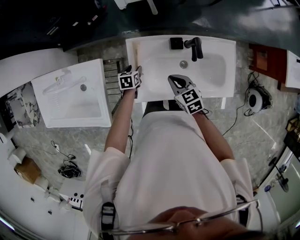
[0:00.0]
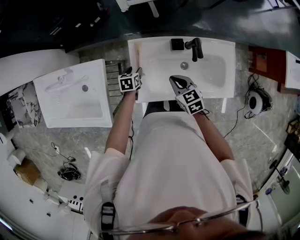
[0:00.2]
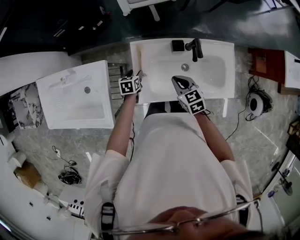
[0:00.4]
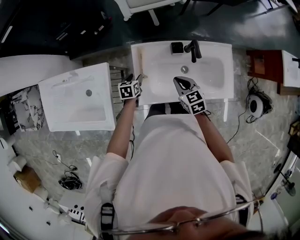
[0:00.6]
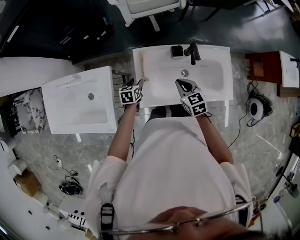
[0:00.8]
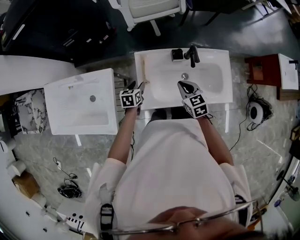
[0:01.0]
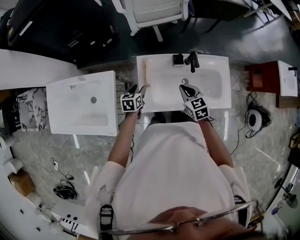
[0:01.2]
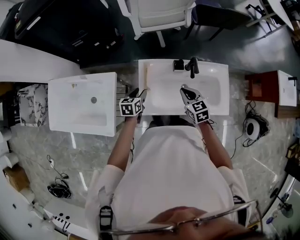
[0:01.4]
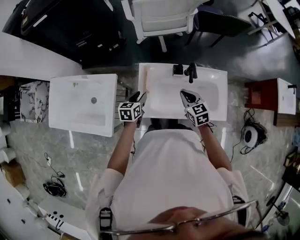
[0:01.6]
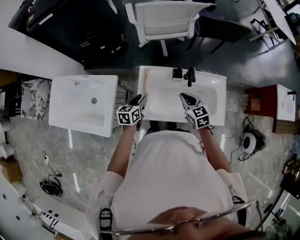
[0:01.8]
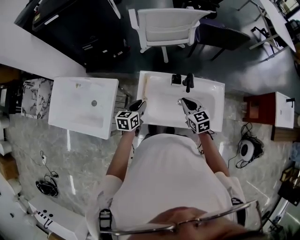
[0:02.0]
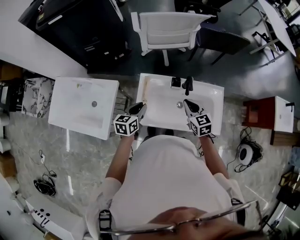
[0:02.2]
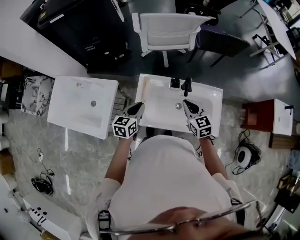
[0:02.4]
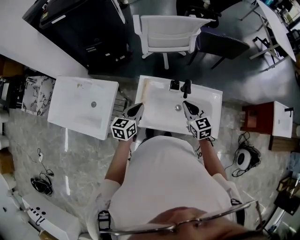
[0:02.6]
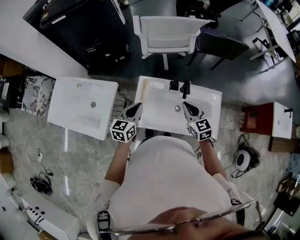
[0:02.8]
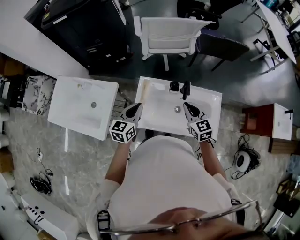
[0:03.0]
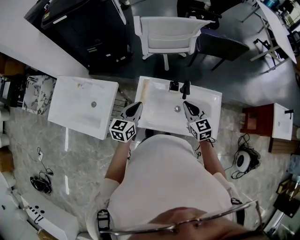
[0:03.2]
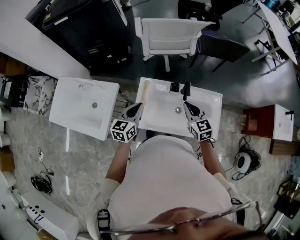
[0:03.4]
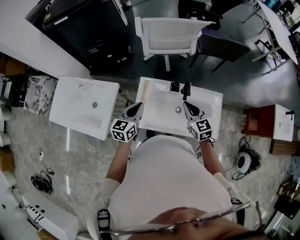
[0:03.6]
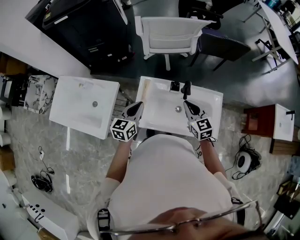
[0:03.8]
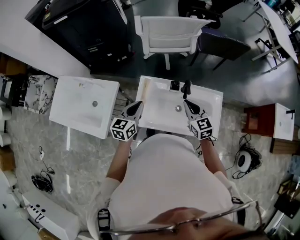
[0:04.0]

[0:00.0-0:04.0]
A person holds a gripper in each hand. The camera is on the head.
0:00.0 to 0:01.4: The left gripper goes some 15 cm upward. The right gripper goes about 5 cm upward.
0:01.4 to 0:02.6: The left gripper heads upward, covering about 15 cm, and closes. The right gripper travels upward by approximately 10 cm.
0:02.6 to 0:04.0: The grippers make only small movements.

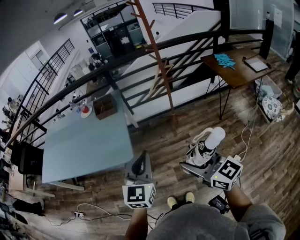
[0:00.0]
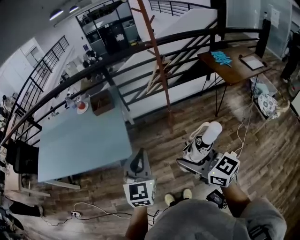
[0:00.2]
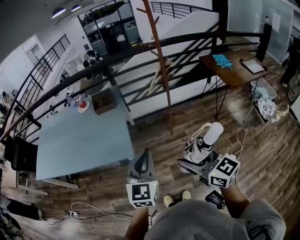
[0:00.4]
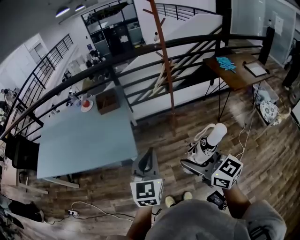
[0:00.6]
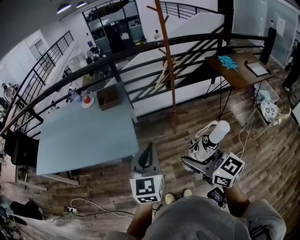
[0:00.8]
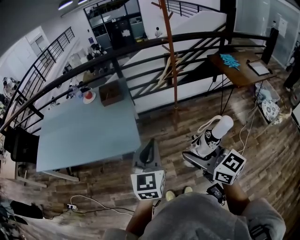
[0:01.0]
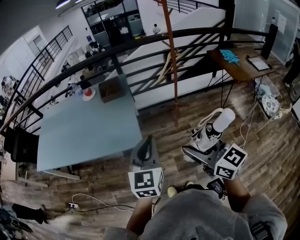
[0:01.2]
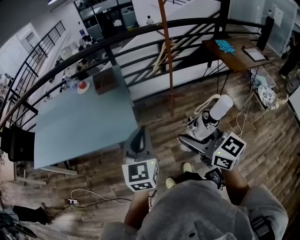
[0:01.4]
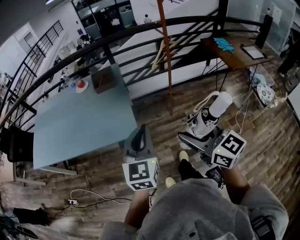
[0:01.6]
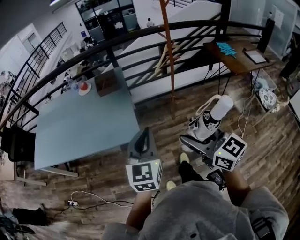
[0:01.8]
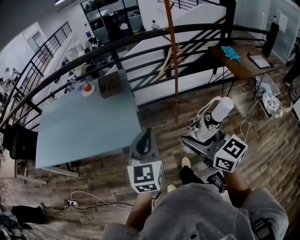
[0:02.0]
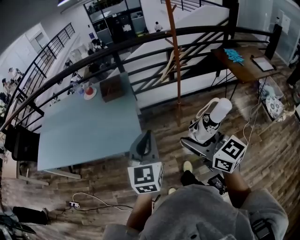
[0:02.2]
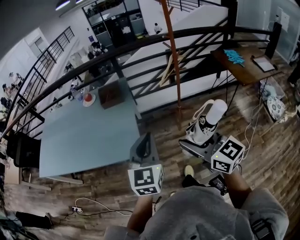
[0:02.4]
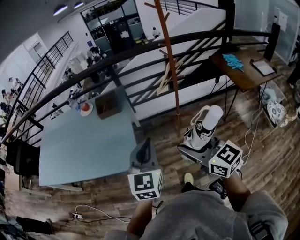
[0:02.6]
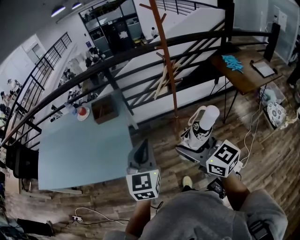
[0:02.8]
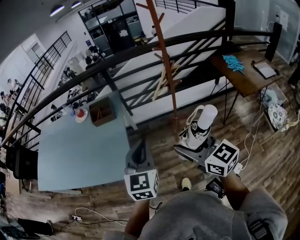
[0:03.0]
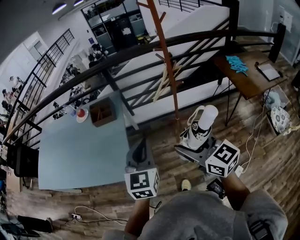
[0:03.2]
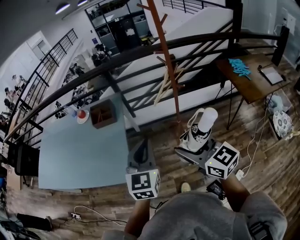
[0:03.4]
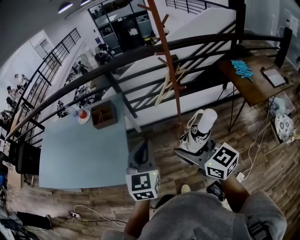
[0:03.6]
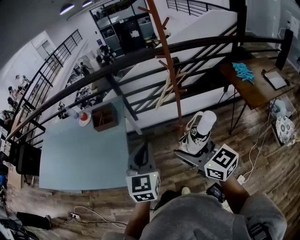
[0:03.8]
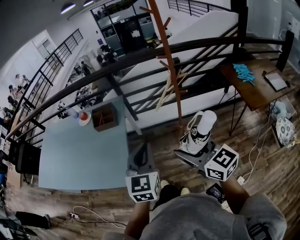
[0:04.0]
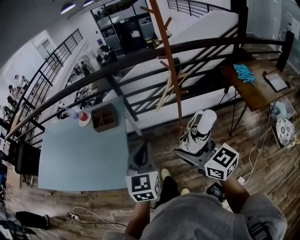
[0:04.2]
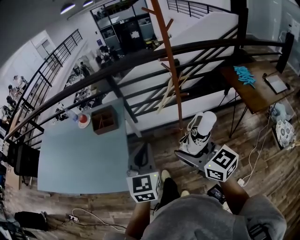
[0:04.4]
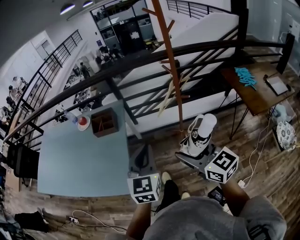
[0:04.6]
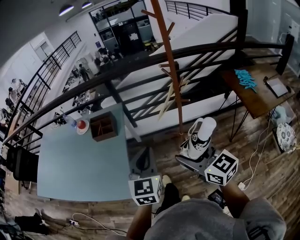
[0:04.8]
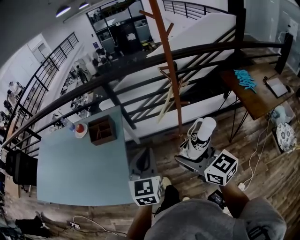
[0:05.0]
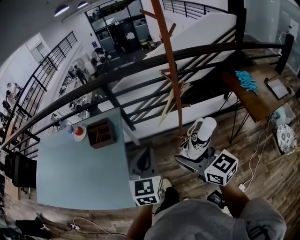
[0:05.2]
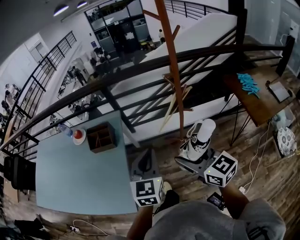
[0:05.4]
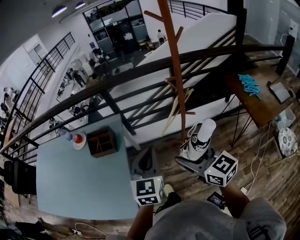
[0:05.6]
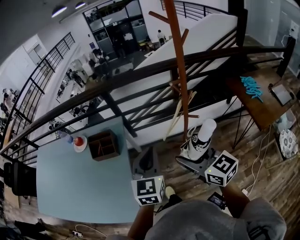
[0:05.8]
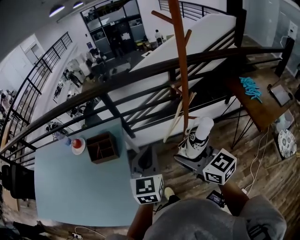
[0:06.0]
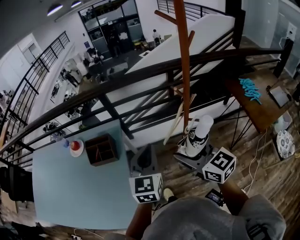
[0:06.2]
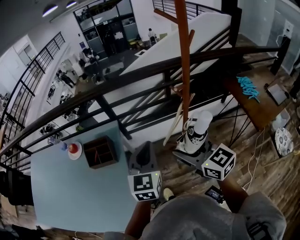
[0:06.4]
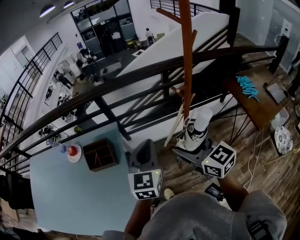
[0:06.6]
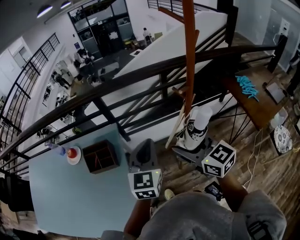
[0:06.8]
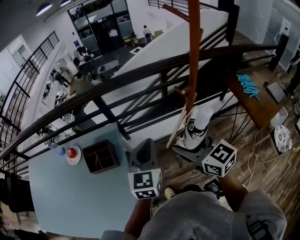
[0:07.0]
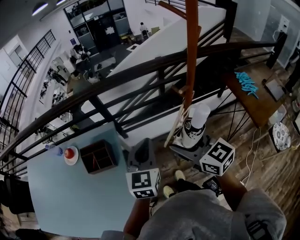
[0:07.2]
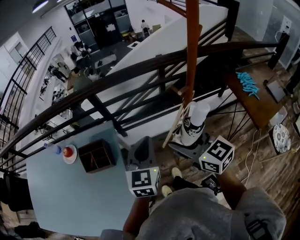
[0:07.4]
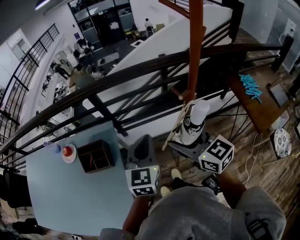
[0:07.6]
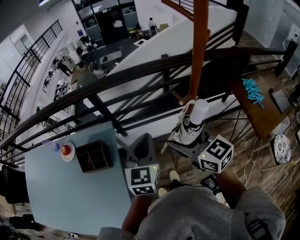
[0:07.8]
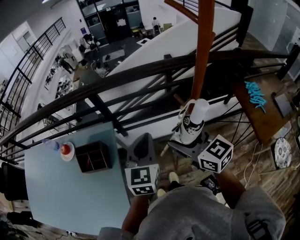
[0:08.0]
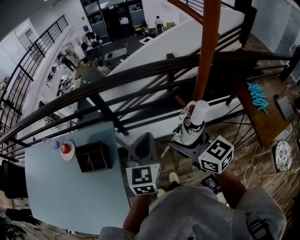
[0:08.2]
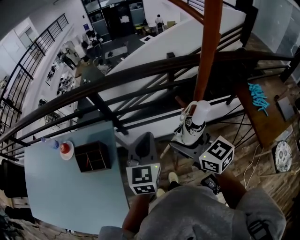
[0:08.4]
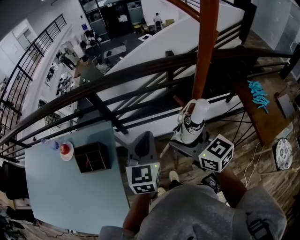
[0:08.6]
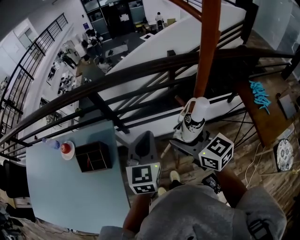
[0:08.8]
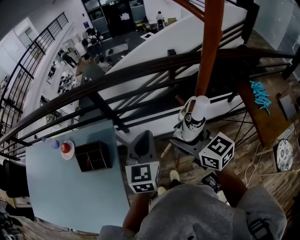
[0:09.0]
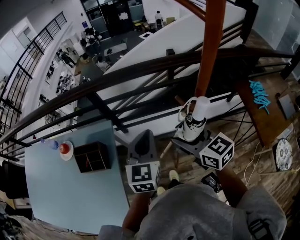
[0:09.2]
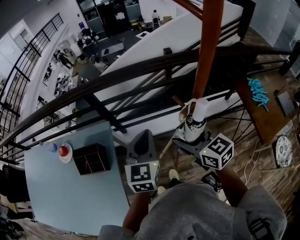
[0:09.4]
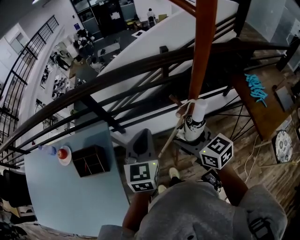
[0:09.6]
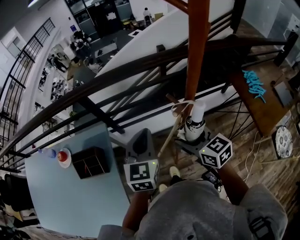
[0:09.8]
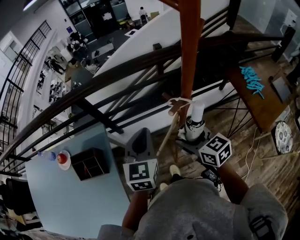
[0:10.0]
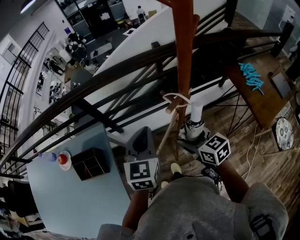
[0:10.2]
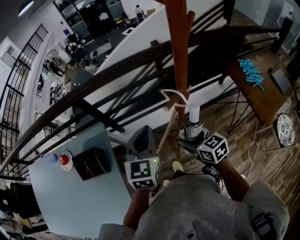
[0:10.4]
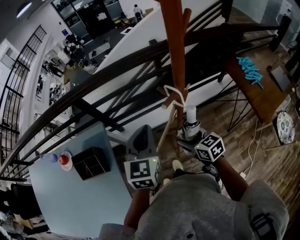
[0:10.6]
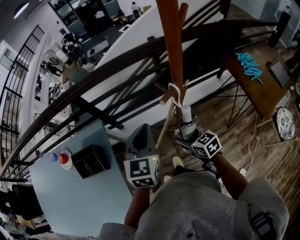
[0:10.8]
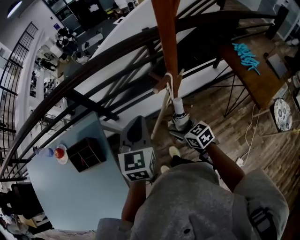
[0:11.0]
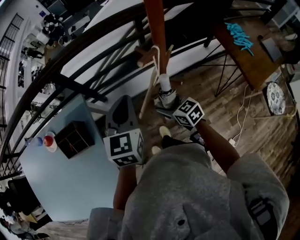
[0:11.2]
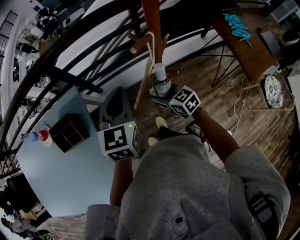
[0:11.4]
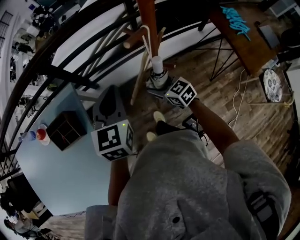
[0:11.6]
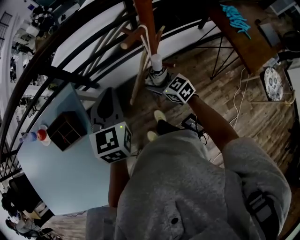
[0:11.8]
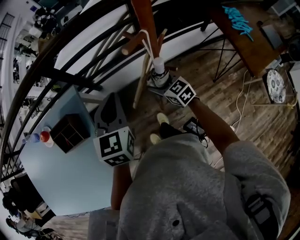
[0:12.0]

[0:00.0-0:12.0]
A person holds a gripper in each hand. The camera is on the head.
0:00.0 to 0:01.6: The two grippers go approximately 10 cm to the left.
0:01.6 to 0:03.0: Both grippers travel together forward and to the right, approximately 25 cm.
0:03.0 to 0:04.4: The two grippers go some 10 cm forward and to the right.
0:04.4 to 0:06.0: Both grippers travel together forward, about 25 cm.
0:06.0 to 0:07.6: Both grippers travel together forward, some 15 cm.
0:07.6 to 0:09.0: Both grippers move forward, some 5 cm.
0:09.0 to 0:10.4: The left gripper changes place by roughly 5 cm. The right gripper heads downward and to the right, covering approximately 15 cm, and turns by roughly 20 degrees.
0:10.4 to 0:12.0: The right gripper goes some 15 cm downward, while the left gripper is displaced downward by roughly 5 cm.

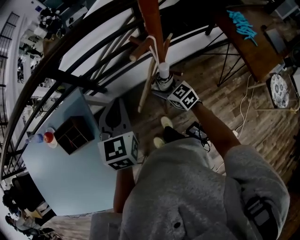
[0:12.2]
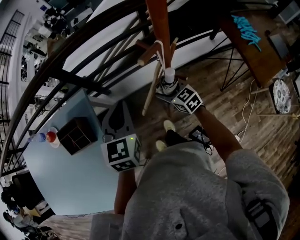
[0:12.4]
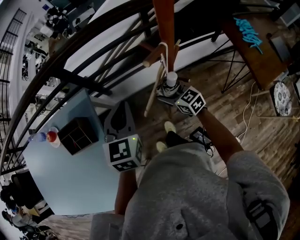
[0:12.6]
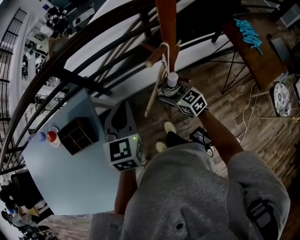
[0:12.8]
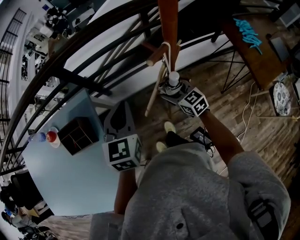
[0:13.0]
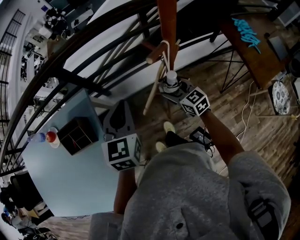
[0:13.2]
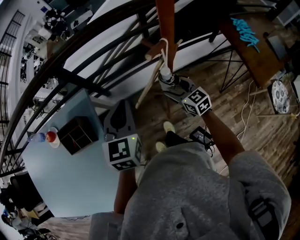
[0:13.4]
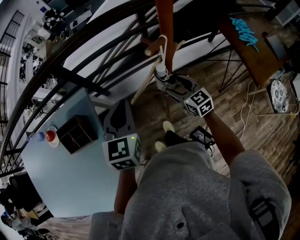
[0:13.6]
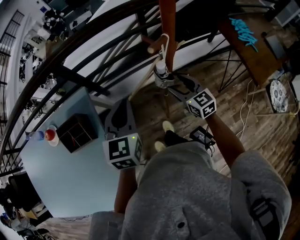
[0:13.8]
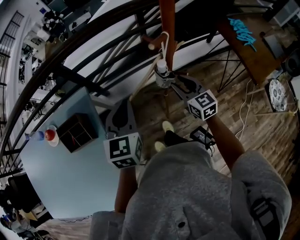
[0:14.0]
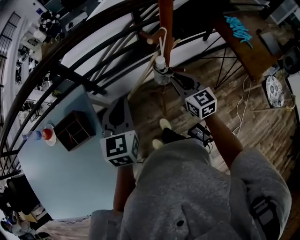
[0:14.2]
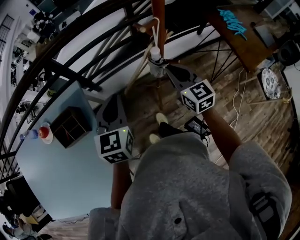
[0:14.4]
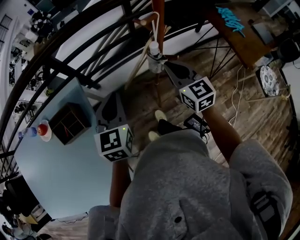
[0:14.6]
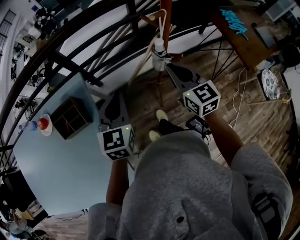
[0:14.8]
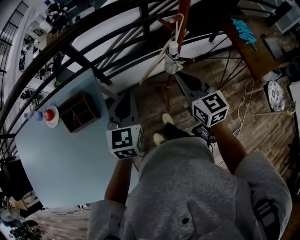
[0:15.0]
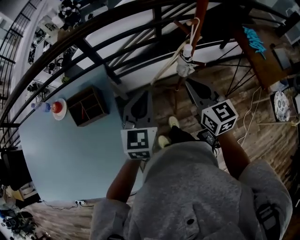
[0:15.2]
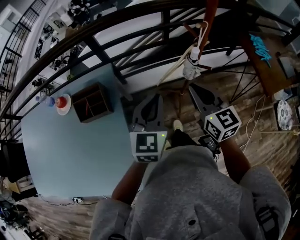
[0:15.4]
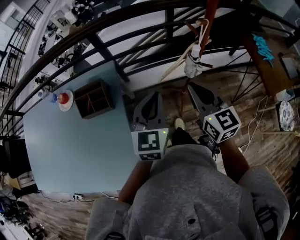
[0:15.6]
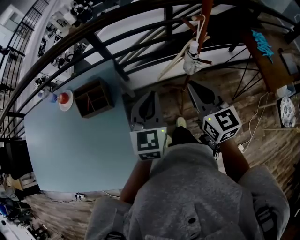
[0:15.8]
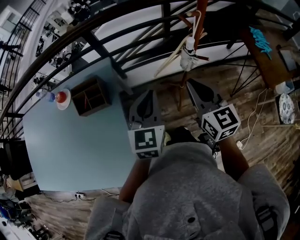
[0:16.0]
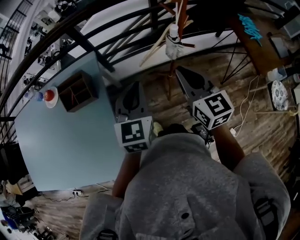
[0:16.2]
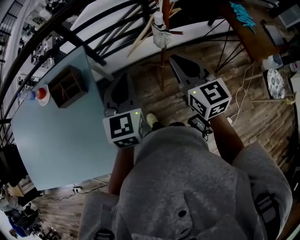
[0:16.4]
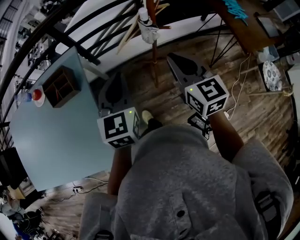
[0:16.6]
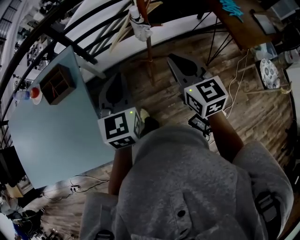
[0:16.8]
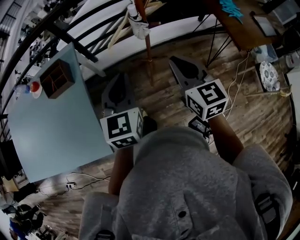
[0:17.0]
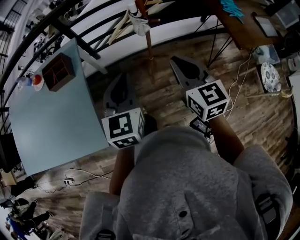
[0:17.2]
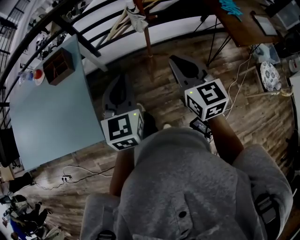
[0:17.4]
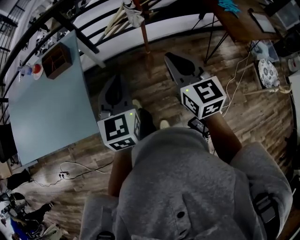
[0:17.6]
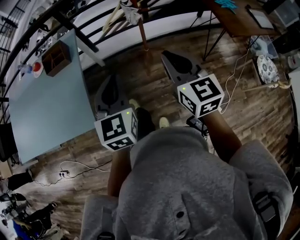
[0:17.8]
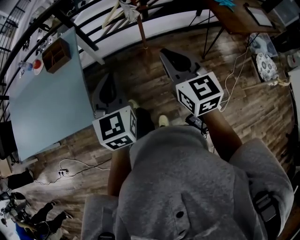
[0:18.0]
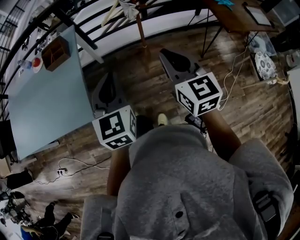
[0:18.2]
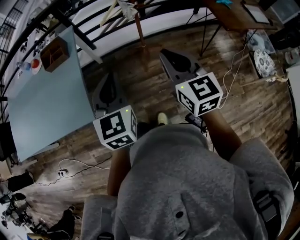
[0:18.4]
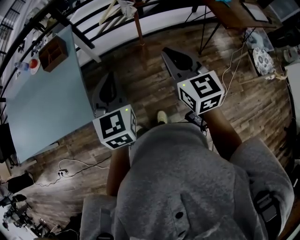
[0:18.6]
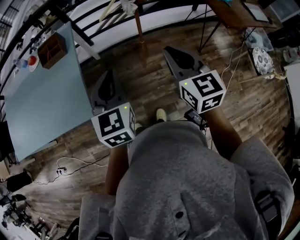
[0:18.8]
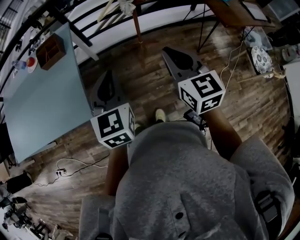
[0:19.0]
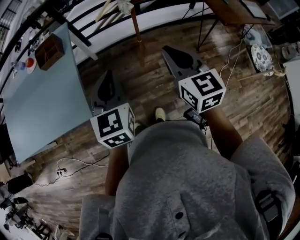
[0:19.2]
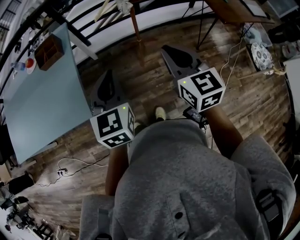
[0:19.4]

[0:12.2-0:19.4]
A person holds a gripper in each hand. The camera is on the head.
0:12.2 to 0:13.6: The right gripper moves about 5 cm.
0:13.6 to 0:15.0: The left gripper travels backward and to the left by approximately 10 cm. Meanwhile the right gripper is displaced upward, backward and to the left by roughly 20 cm, and closes its fingers.
0:15.0 to 0:16.6: The left gripper moves backward and to the right, roughly 10 cm. The right gripper goes some 10 cm backward.
0:16.6 to 0:18.0: Both grippers move backward, about 25 cm.
0:18.0 to 0:19.4: There are only small adjustments of the grippers.
